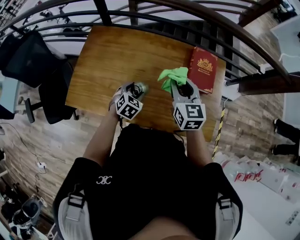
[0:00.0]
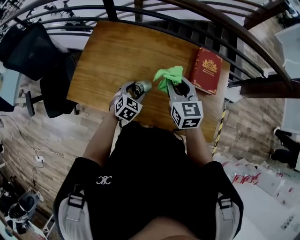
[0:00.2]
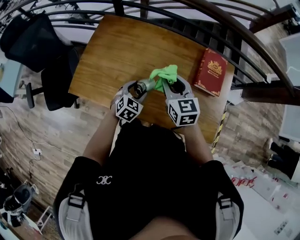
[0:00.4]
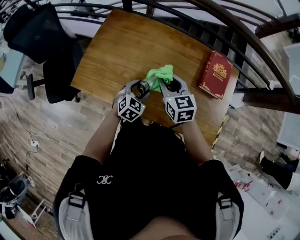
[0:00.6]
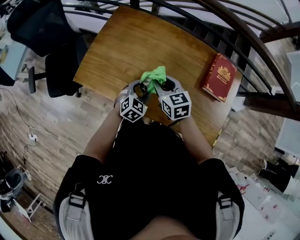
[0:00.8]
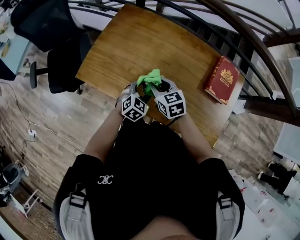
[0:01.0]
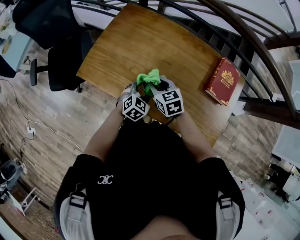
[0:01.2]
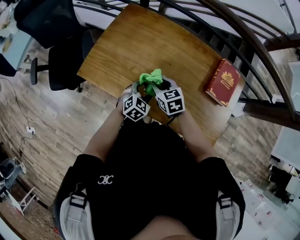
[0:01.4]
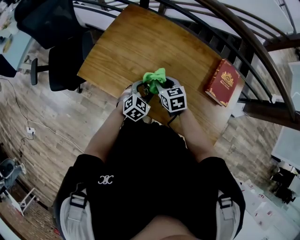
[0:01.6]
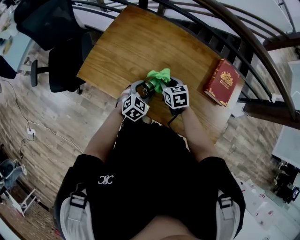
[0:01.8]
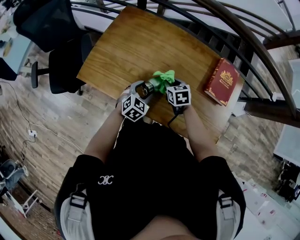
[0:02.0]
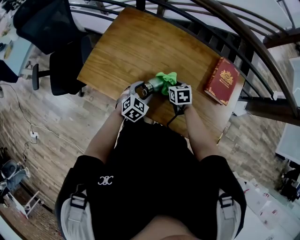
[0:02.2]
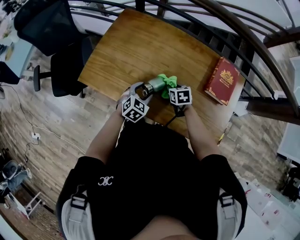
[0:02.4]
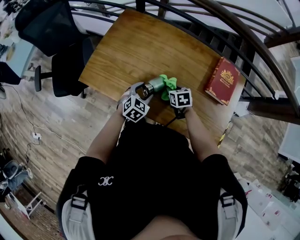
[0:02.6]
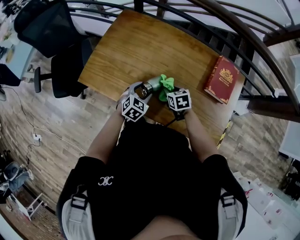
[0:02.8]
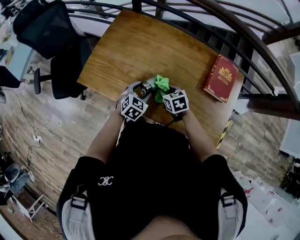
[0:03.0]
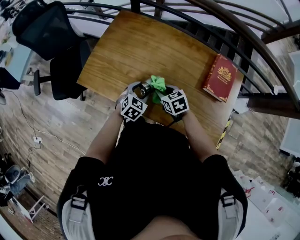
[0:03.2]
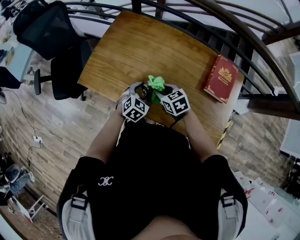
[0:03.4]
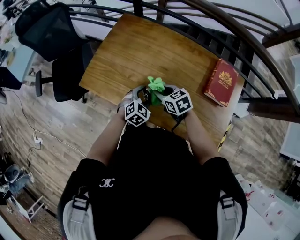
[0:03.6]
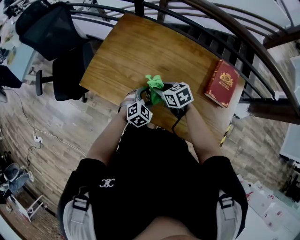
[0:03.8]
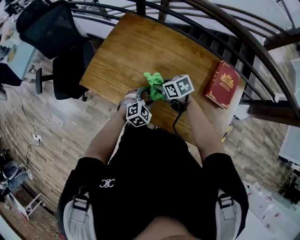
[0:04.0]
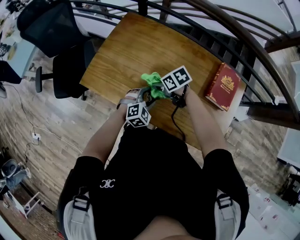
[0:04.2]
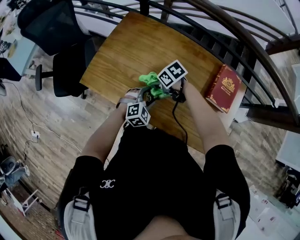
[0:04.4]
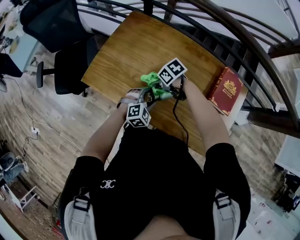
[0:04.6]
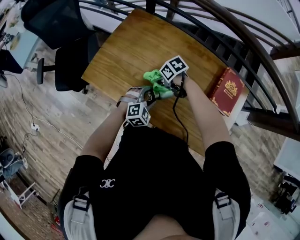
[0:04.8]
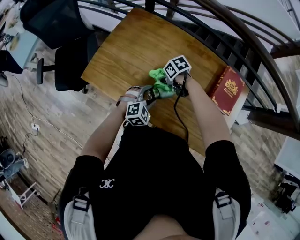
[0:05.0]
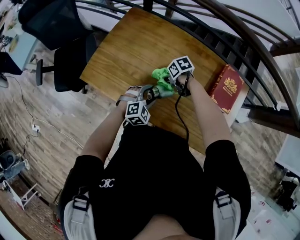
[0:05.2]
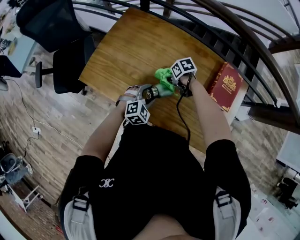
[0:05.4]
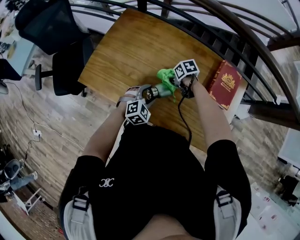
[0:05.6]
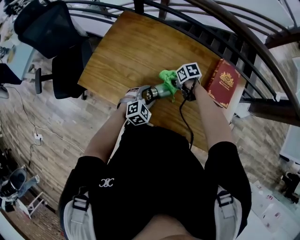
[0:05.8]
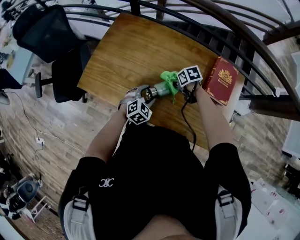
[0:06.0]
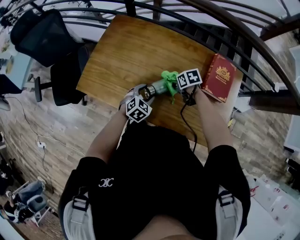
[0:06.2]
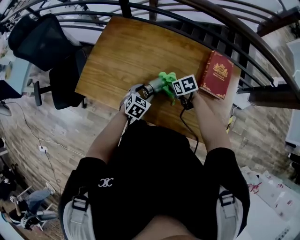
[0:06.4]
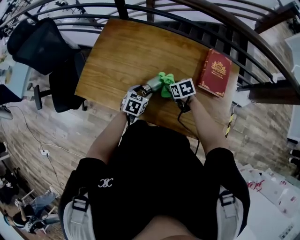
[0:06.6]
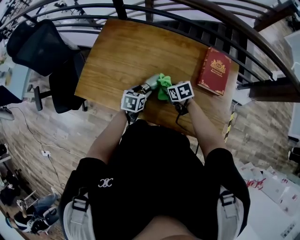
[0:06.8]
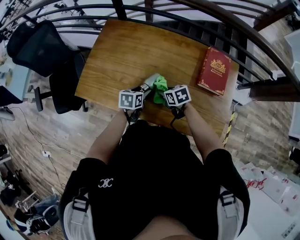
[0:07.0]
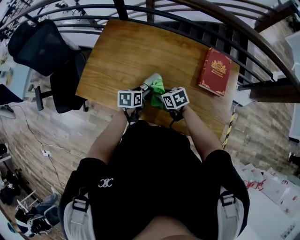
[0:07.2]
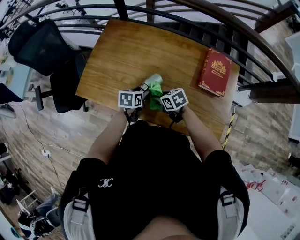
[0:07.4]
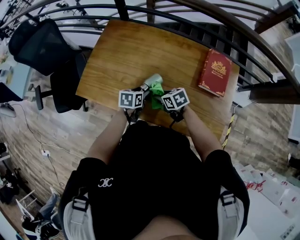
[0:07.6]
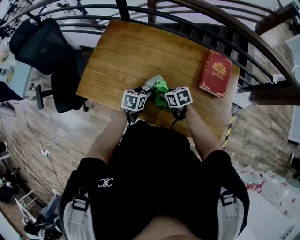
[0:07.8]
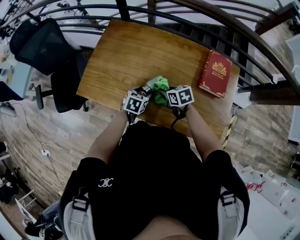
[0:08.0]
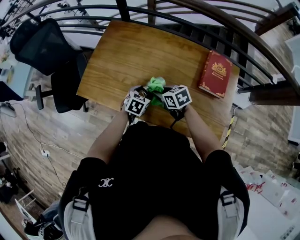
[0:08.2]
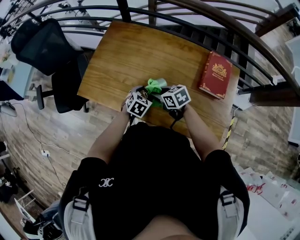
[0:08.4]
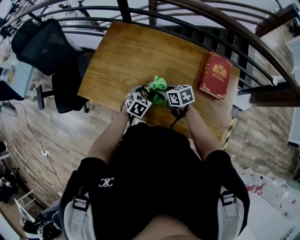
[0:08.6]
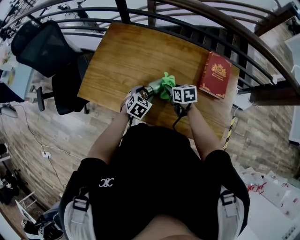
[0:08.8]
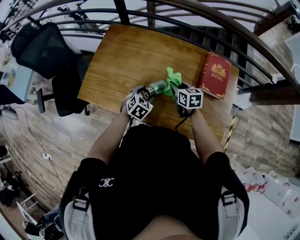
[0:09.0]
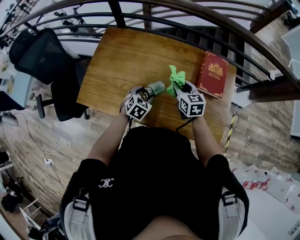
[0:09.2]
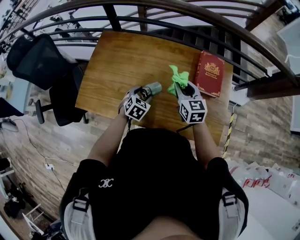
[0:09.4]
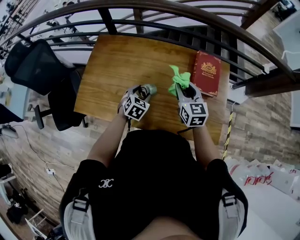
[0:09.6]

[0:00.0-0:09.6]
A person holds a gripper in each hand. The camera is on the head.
0:00.0 to 0:01.6: The right gripper is displaced to the left and downward by some 25 cm, and turns by about 40 degrees, while the left gripper moves to the left, approximately 5 cm.
0:03.2 to 0:04.8: The right gripper moves about 10 cm, and changes its angle by about 40 degrees. The left gripper rotates about 30 degrees.
0:04.8 to 0:06.4: The left gripper changes its angle by some 30 degrees. Meanwhile the right gripper moves some 15 cm, and rotates roughly 30 degrees.
0:06.4 to 0:08.0: The right gripper heads to the left, covering about 5 cm.
0:08.0 to 0:09.6: The left gripper changes place by some 10 cm, and changes its angle by some 20 degrees, while the right gripper is displaced upward by roughly 15 cm, and swivels roughly 50 degrees.

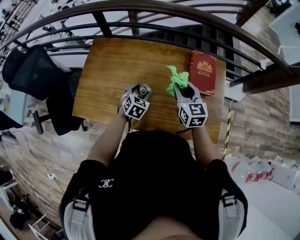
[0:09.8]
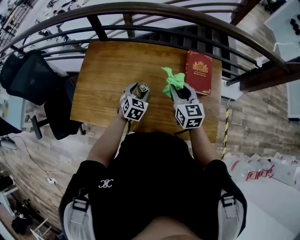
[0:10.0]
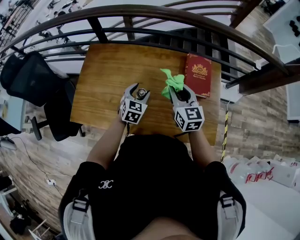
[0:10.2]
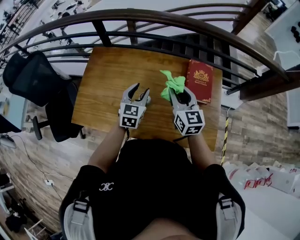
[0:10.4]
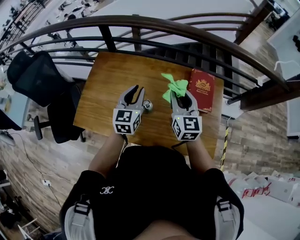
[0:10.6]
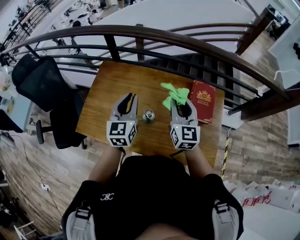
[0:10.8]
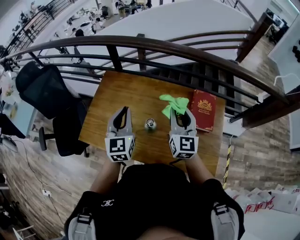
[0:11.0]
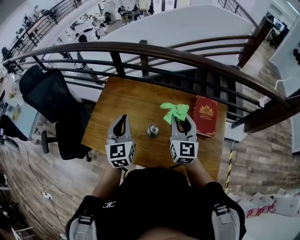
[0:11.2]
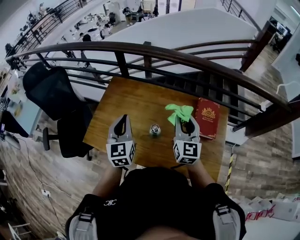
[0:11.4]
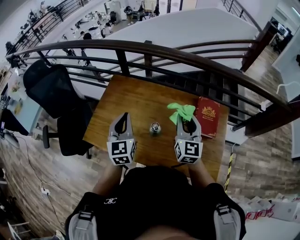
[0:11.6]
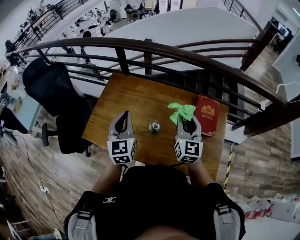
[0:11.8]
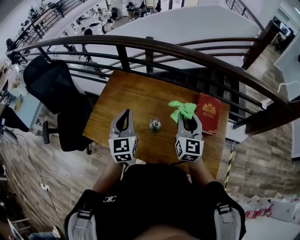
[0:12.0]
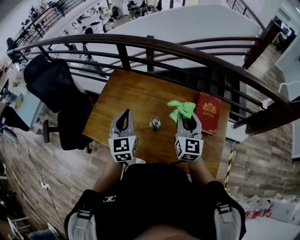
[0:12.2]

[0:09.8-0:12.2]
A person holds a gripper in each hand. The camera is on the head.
0:09.8 to 0:11.0: The left gripper heads upward, covering some 25 cm, points its fingers about 40 degrees further upward, and closes; the right gripper shifts about 10 cm upward.
0:11.0 to 0:12.2: The grippers stay close to where they were, moving slightly.

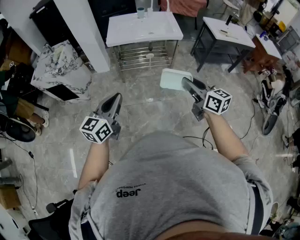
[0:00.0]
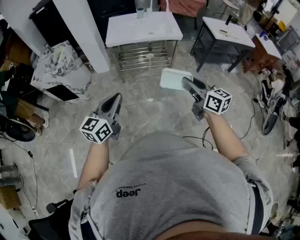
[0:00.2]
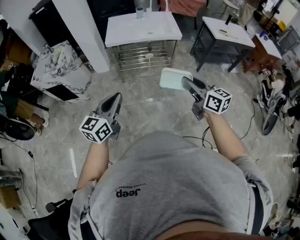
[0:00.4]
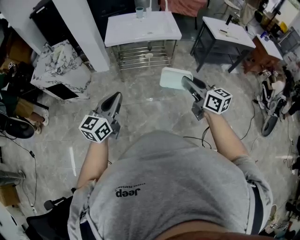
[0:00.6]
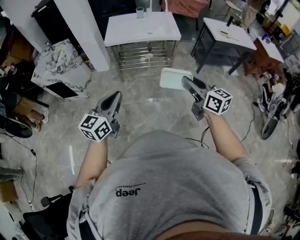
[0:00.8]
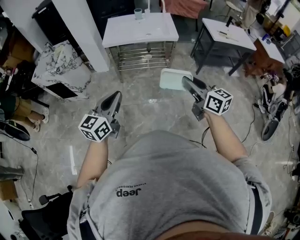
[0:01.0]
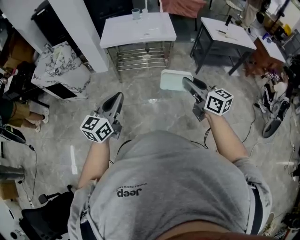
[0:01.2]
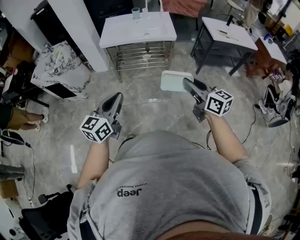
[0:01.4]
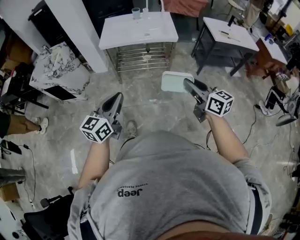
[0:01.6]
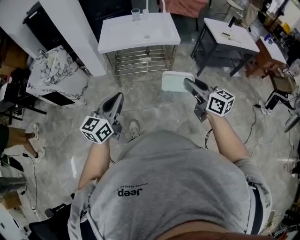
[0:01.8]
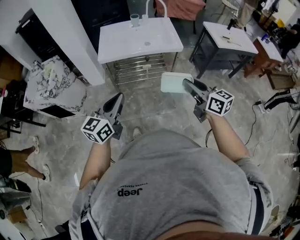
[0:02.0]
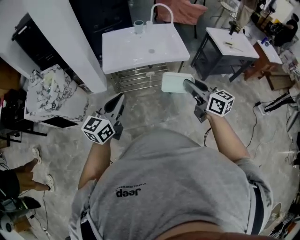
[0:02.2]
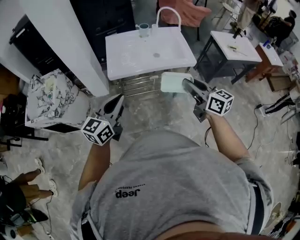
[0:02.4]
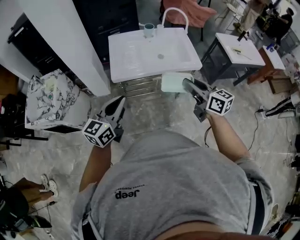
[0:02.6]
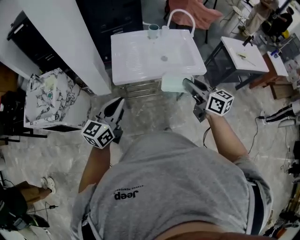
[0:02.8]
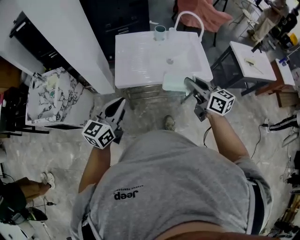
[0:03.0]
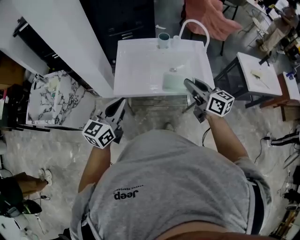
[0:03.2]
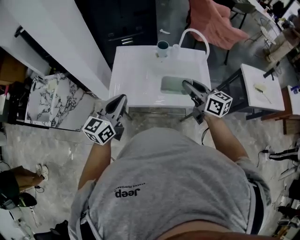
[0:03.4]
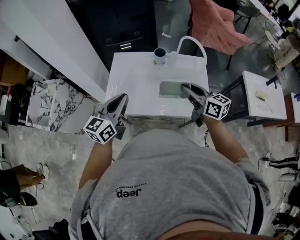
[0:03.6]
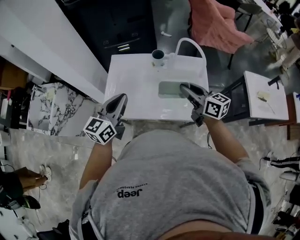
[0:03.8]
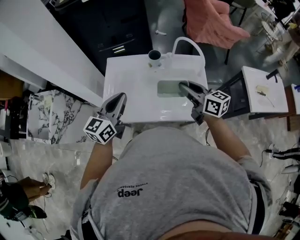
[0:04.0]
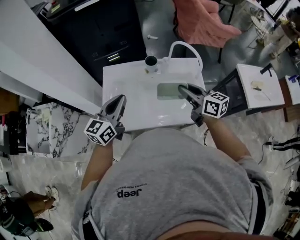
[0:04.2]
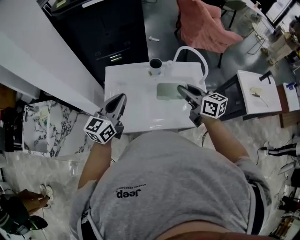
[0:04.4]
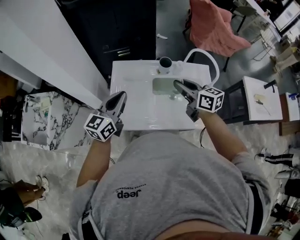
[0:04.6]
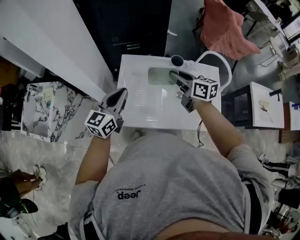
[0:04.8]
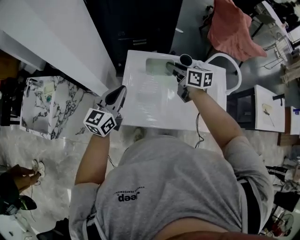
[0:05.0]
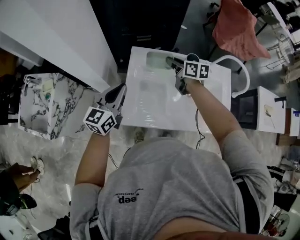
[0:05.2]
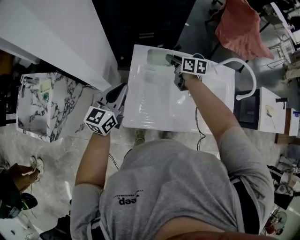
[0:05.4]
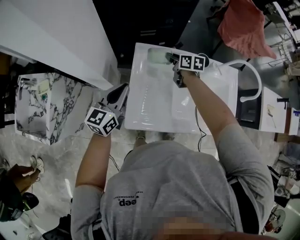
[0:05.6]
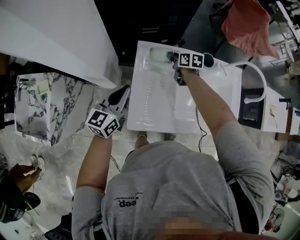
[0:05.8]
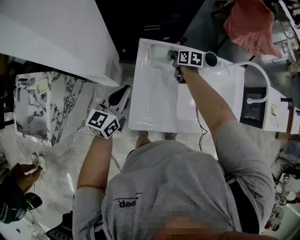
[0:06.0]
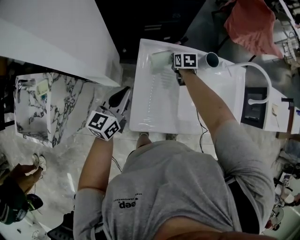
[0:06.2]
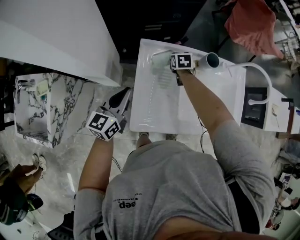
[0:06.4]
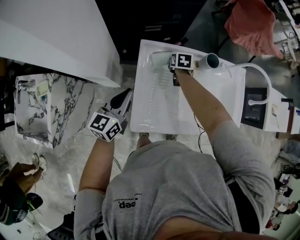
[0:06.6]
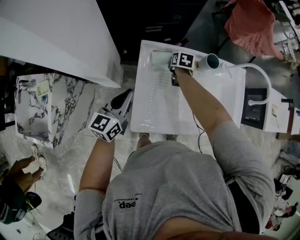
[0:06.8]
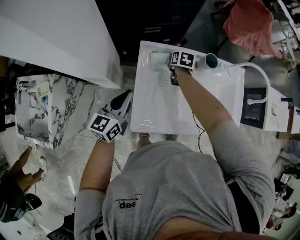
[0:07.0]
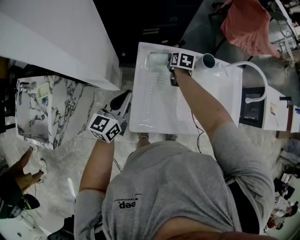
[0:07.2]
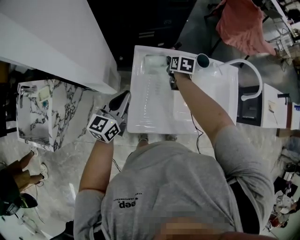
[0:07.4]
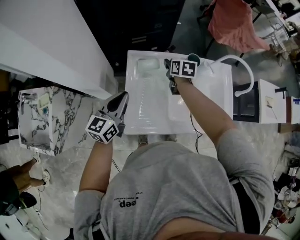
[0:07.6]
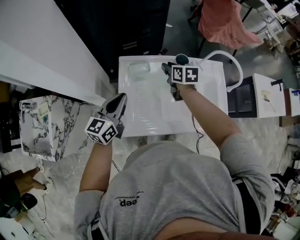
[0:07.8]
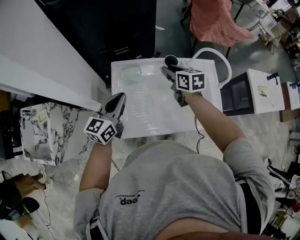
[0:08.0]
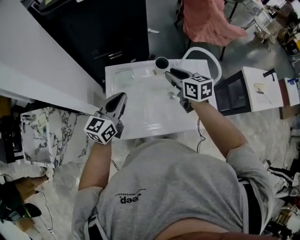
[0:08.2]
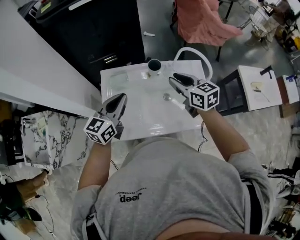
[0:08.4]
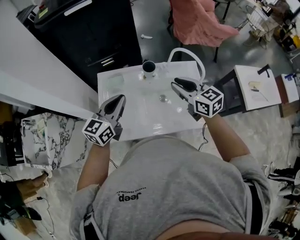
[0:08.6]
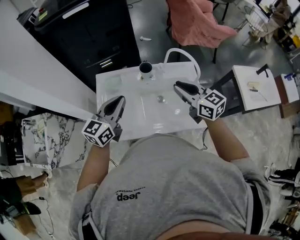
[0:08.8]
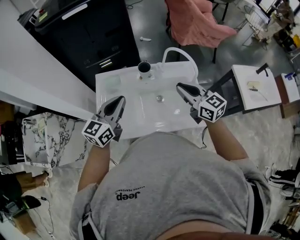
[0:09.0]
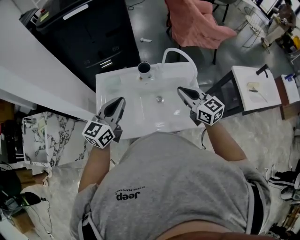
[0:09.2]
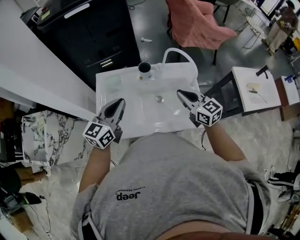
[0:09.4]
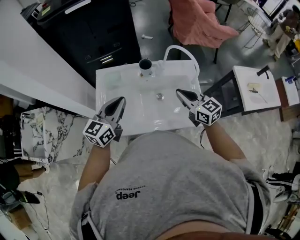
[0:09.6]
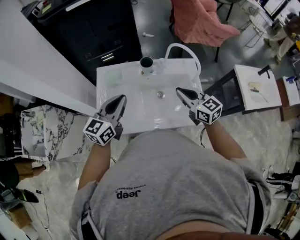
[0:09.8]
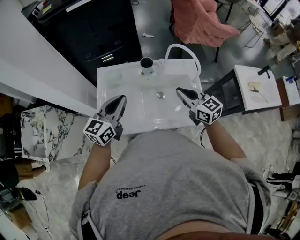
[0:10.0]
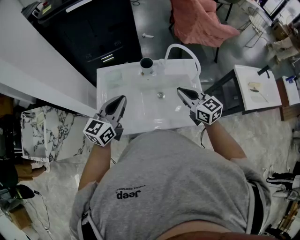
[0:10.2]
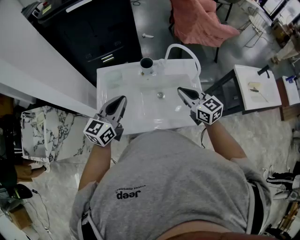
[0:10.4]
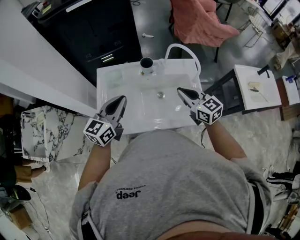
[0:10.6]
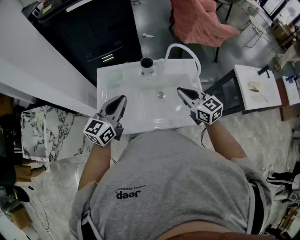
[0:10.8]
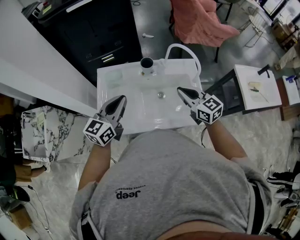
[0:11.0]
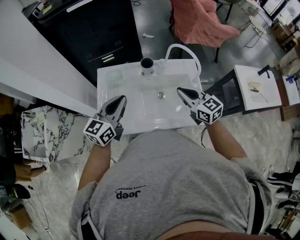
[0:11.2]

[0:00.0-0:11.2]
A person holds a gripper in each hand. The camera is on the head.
0:00.0 to 0:01.6: Both grippers travel together to the right, some 10 cm.
0:01.6 to 0:03.2: The two grippers travel together, forward, some 50 cm.
0:03.2 to 0:04.8: Both grippers travel together forward, some 30 cm.
0:04.8 to 0:06.4: The right gripper heads downward and forward, covering some 35 cm, and points its fingers about 40 degrees further downward. The left gripper heads downward, to the left and forward, covering approximately 20 cm.
0:06.4 to 0:08.0: The right gripper moves upward, to the right and backward, about 25 cm, changes its angle by approximately 30 degrees, and opens its fingers, while the left gripper goes about 15 cm to the right and upward.
0:08.0 to 0:09.6: The right gripper is displaced to the right and backward by some 25 cm, changes its angle by some 30 degrees, and closes its fingers. Meanwhile the left gripper is displaced to the right and backward by roughly 15 cm.
0:09.6 to 0:11.2: Both grippers stay put.
